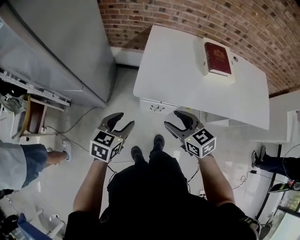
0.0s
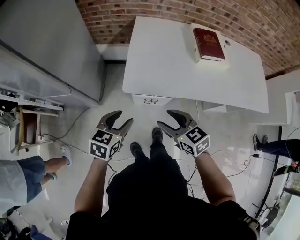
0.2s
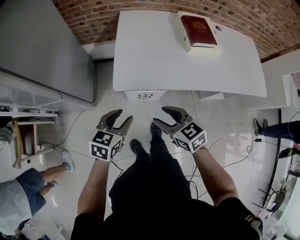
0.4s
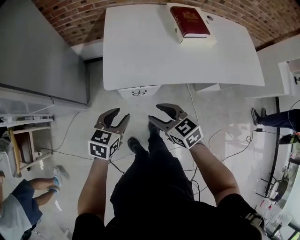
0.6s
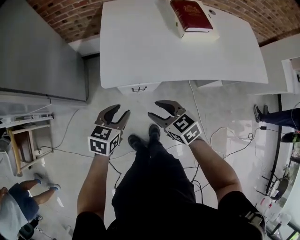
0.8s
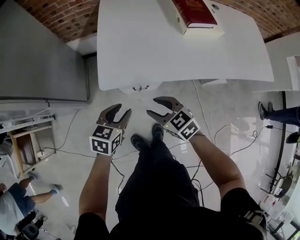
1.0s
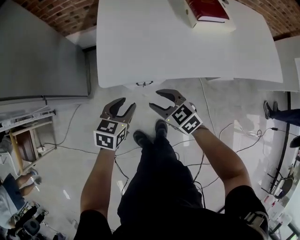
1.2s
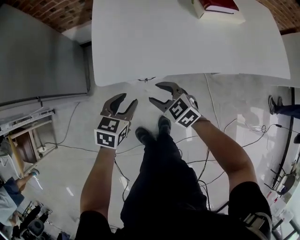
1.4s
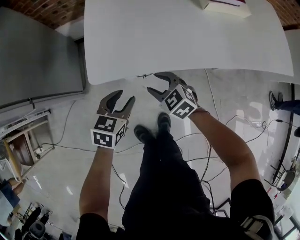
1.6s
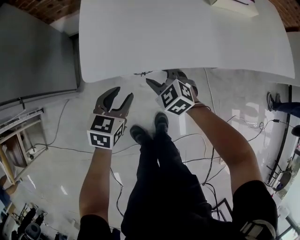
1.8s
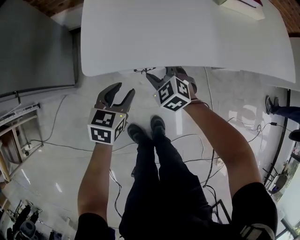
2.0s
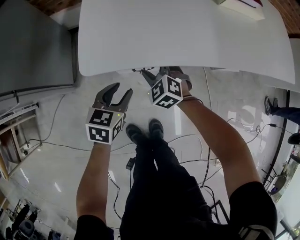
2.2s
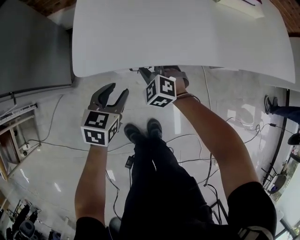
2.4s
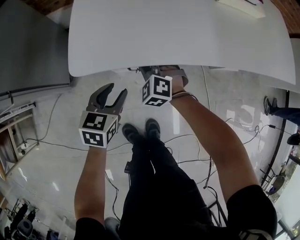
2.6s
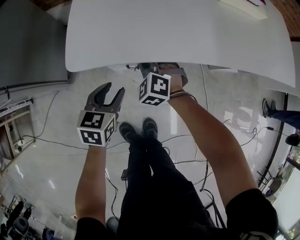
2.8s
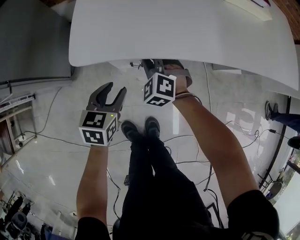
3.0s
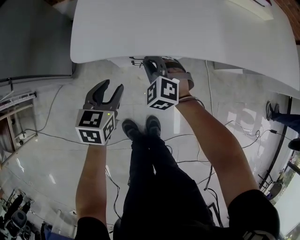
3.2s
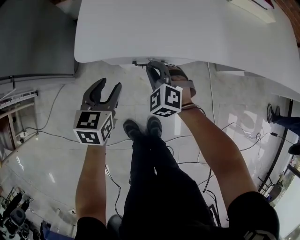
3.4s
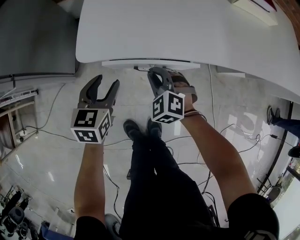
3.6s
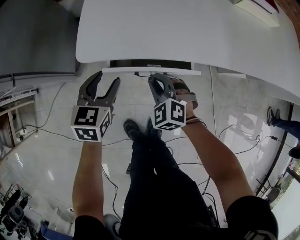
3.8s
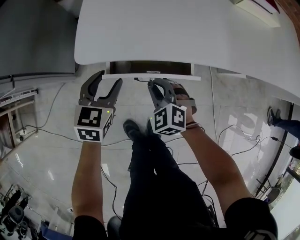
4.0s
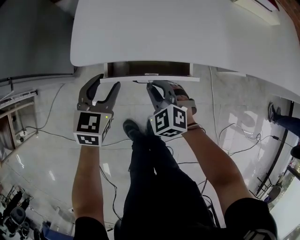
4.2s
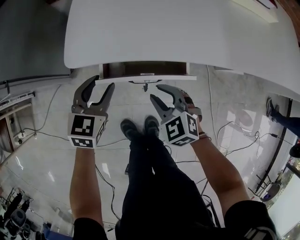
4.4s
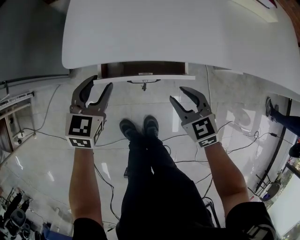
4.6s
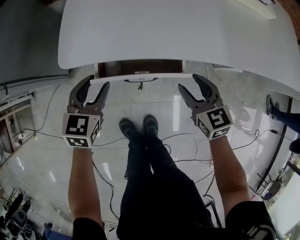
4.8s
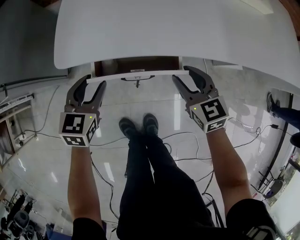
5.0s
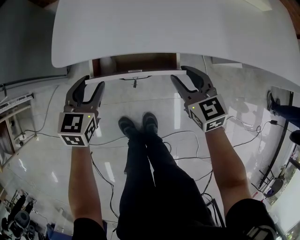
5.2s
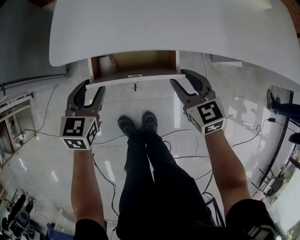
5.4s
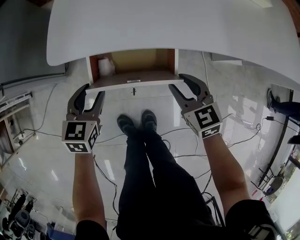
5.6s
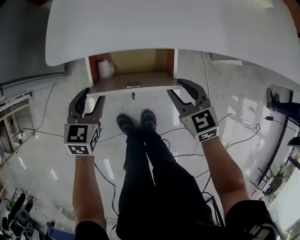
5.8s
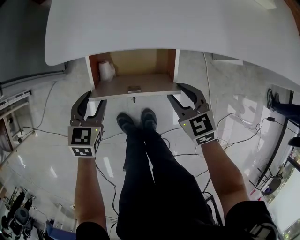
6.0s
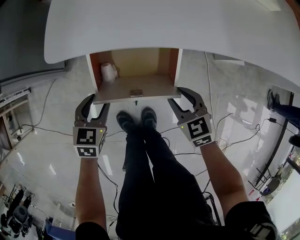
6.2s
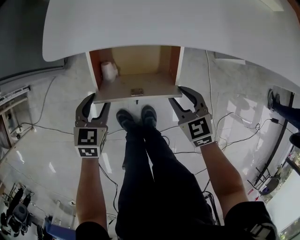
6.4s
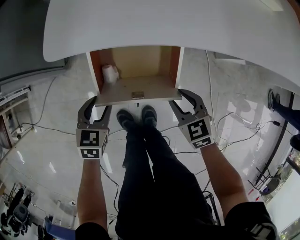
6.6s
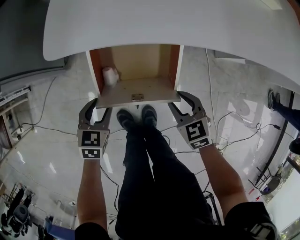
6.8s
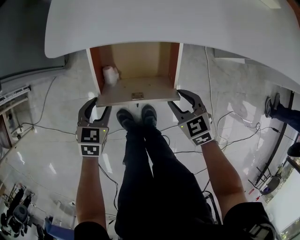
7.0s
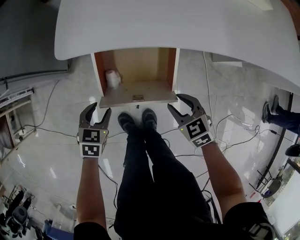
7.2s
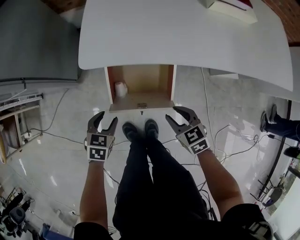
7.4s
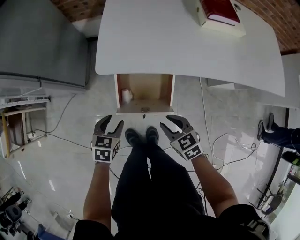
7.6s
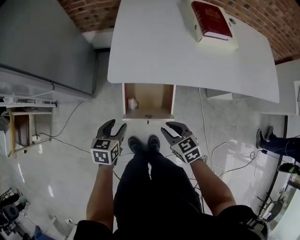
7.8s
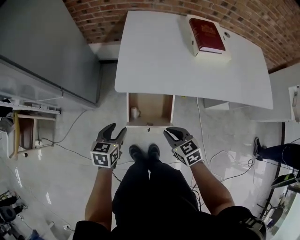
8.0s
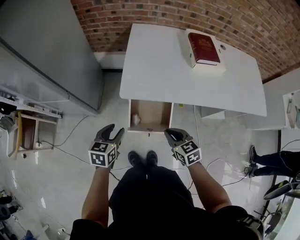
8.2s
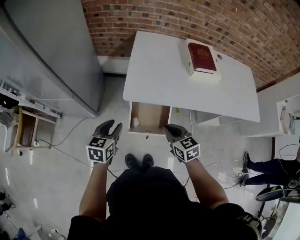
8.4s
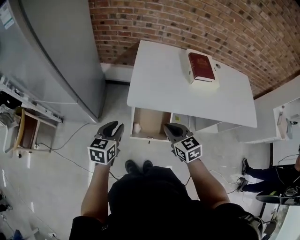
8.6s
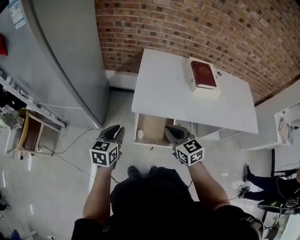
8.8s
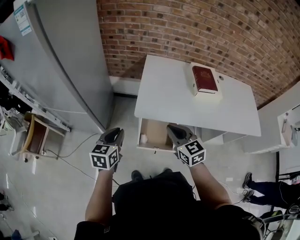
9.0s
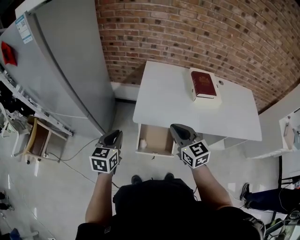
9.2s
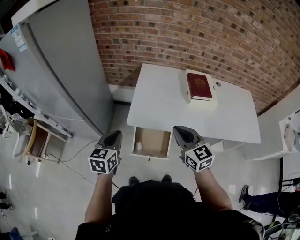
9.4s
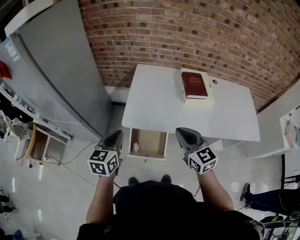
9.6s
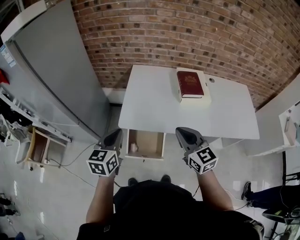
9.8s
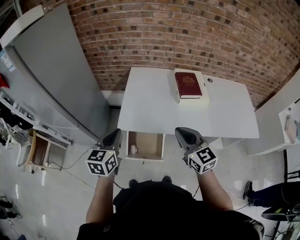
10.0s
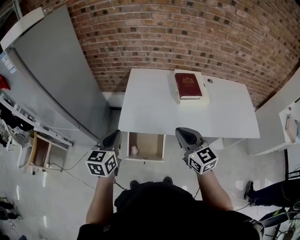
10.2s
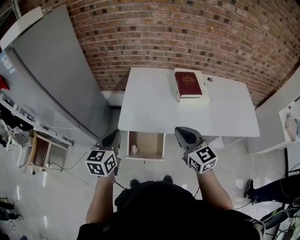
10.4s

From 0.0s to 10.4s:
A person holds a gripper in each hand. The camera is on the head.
From 0.0s to 1.4s: The left gripper shifts approximately 25 cm downward and to the right. Meanwhile the right gripper travels downward by roughly 25 cm.
From 1.4s to 3.0s: The right gripper shifts about 15 cm downward and forward, changes its angle by some 40 degrees, and closes up. Meanwhile the left gripper is displaced downward by some 10 cm.
From 3.0s to 4.4s: The right gripper heads backward, covering roughly 10 cm, and swivels roughly 20 degrees.
From 4.4s to 6.0s: The right gripper moves to the right, some 10 cm, and swivels roughly 20 degrees. Meanwhile the left gripper moves backward, some 10 cm.
From 6.0s to 7.4s: Both grippers travel together backward, some 5 cm.
From 7.4s to 9.0s: The two grippers go approximately 40 cm upward. The left gripper angles its fingers upward, by about 30 degrees, and closes up; the right gripper changes its angle by approximately 30 degrees, and closes.
From 9.0s to 10.4s: The two grippers go about 15 cm to the right and upward.

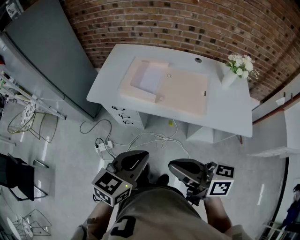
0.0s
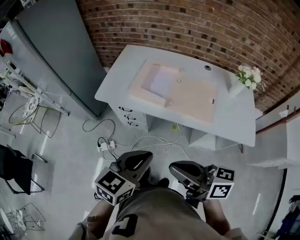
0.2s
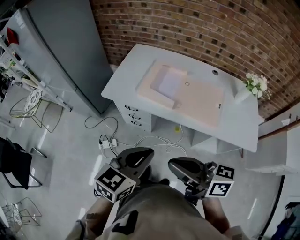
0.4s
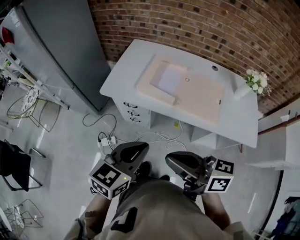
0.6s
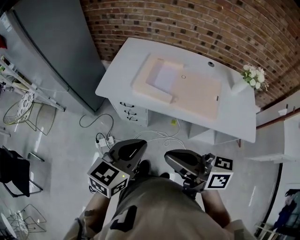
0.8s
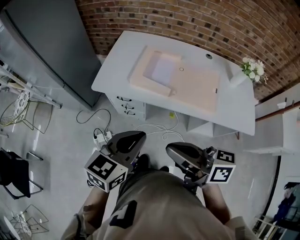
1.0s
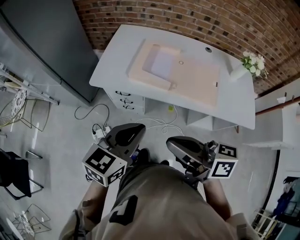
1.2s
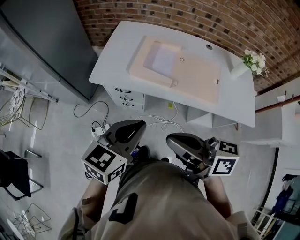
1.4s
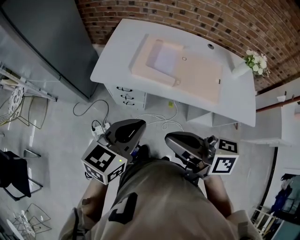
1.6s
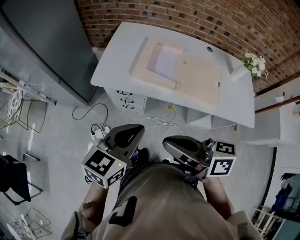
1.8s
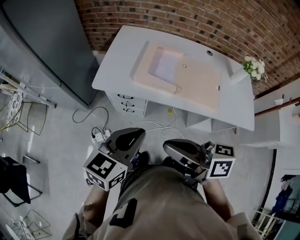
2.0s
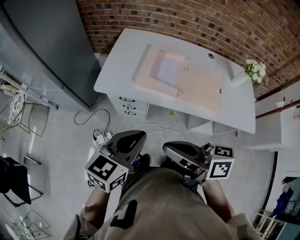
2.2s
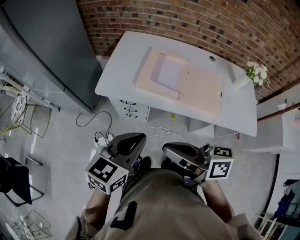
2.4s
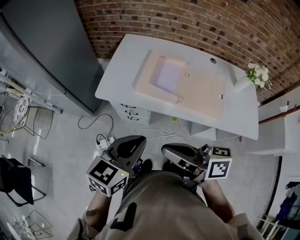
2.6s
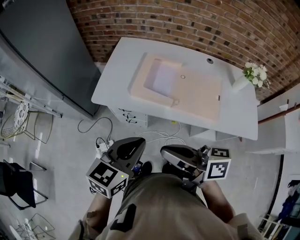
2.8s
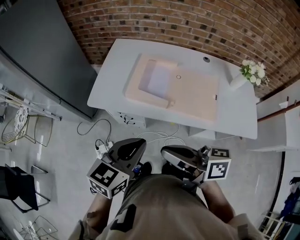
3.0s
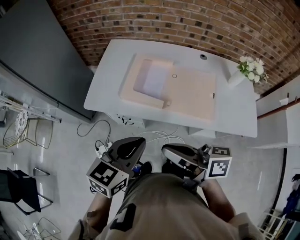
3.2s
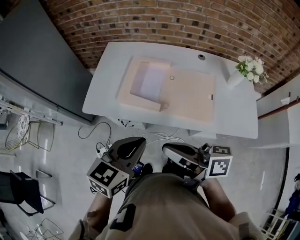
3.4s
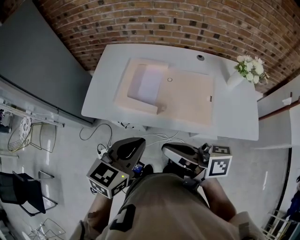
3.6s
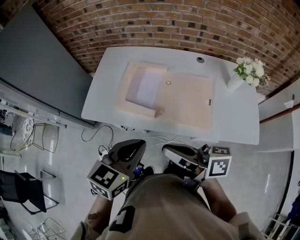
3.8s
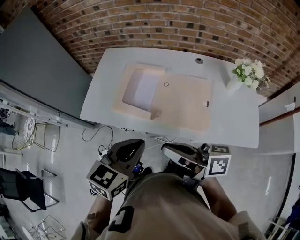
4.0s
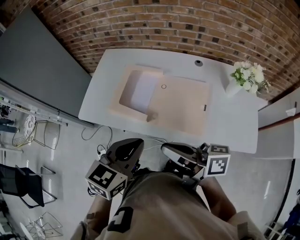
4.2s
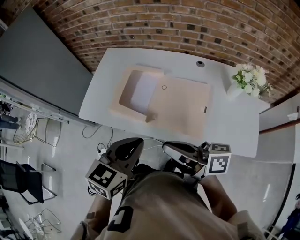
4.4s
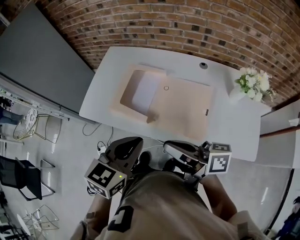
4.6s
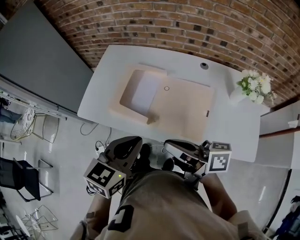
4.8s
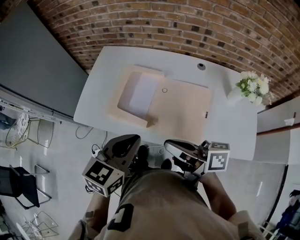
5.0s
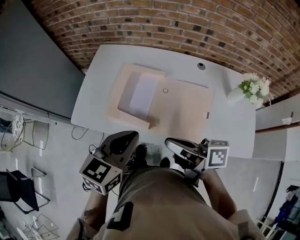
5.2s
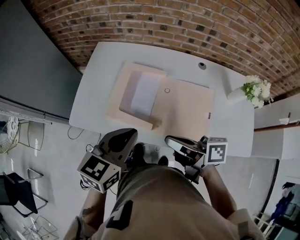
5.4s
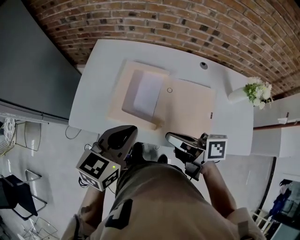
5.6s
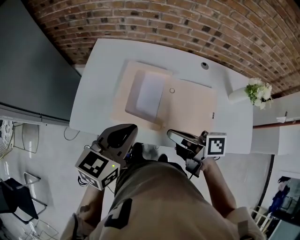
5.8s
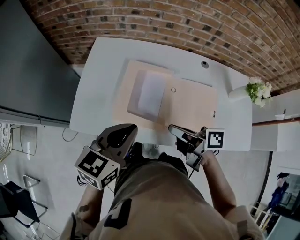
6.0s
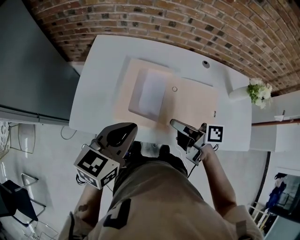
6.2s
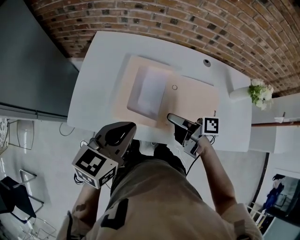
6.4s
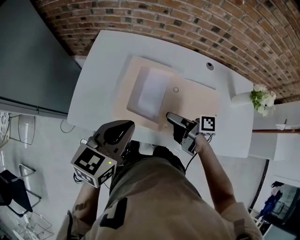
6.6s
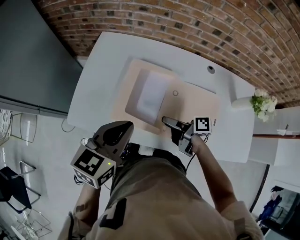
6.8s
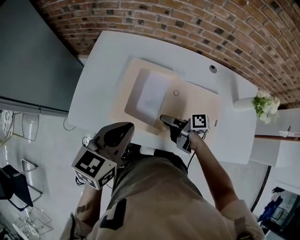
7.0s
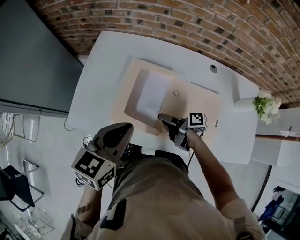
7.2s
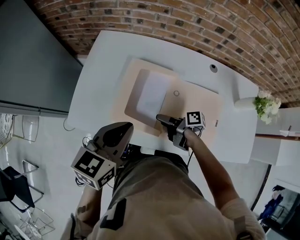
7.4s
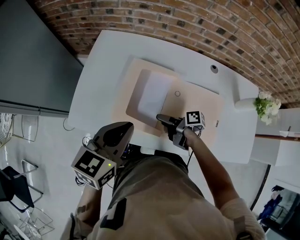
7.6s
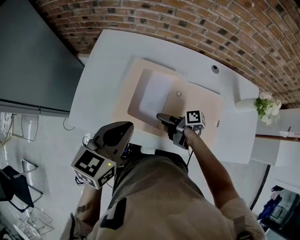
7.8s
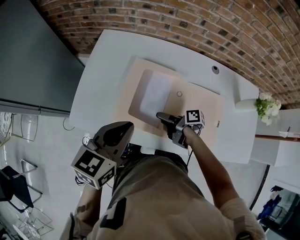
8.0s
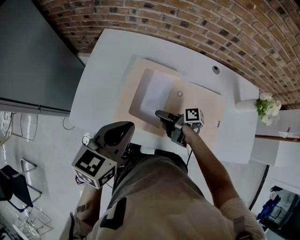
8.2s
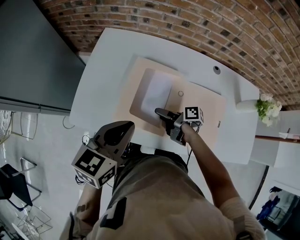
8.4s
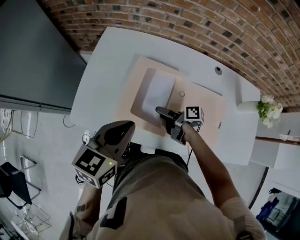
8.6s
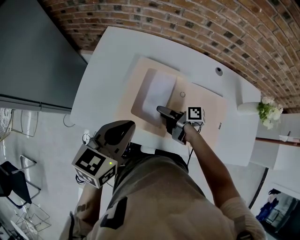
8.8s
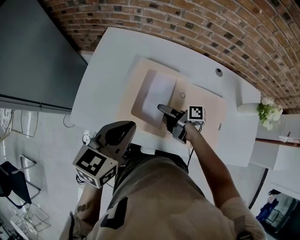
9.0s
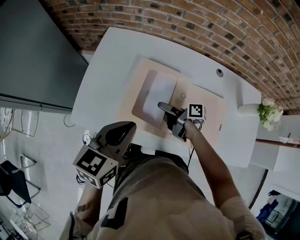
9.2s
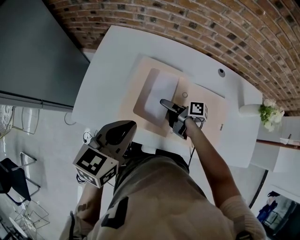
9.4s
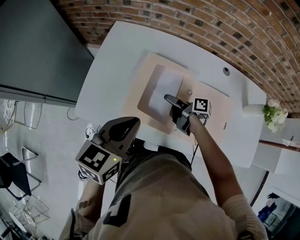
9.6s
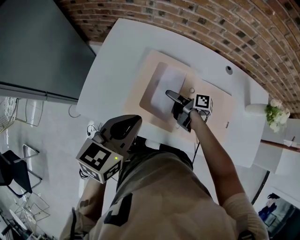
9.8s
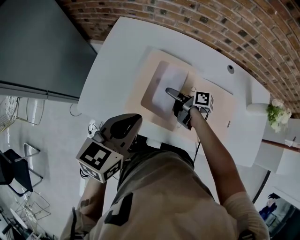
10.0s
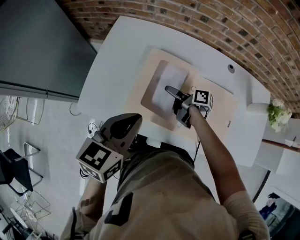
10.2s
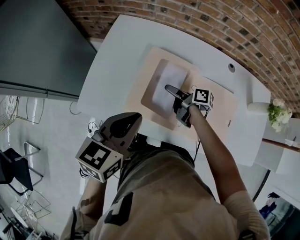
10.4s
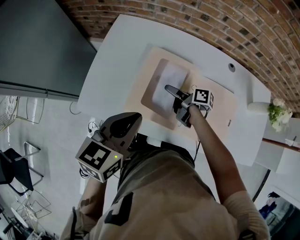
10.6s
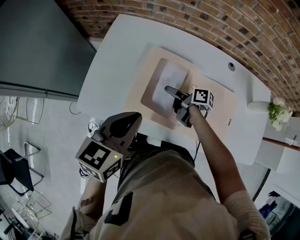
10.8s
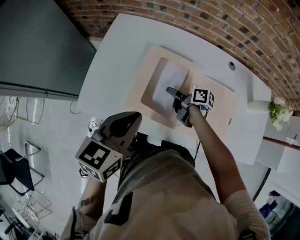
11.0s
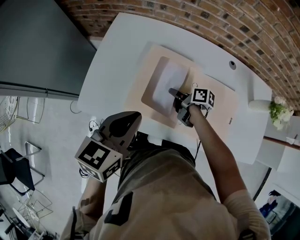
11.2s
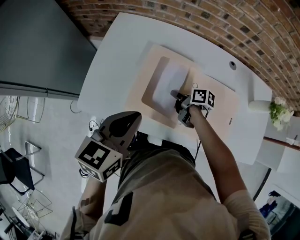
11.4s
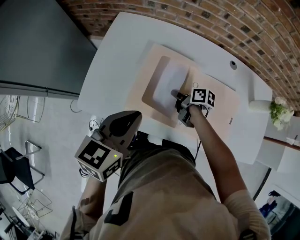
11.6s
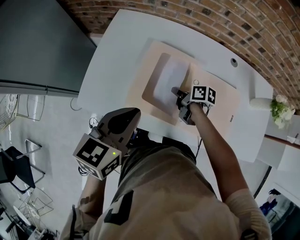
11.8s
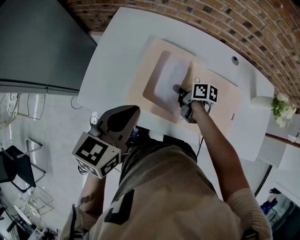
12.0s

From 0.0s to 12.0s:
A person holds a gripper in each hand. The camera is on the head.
From 0.0s to 1.6s: The grippers both shift to the left and forward by about 15 cm.
From 1.6s to 3.0s: The left gripper ends up some 5 cm from where it was. Meanwhile the right gripper shifts by about 5 cm.
From 3.0s to 4.4s: The left gripper goes approximately 15 cm to the right. The right gripper shifts roughly 20 cm to the right and forward.
From 4.4s to 6.0s: The left gripper goes approximately 20 cm forward and to the left. Meanwhile the right gripper heads forward, downward and to the left, covering some 20 cm, and swivels about 20 degrees.
From 6.0s to 7.6s: The right gripper moves downward, some 15 cm, turns by approximately 30 degrees, and opens.
From 7.6s to 9.0s: The right gripper is displaced forward by roughly 5 cm.
From 9.0s to 10.4s: The grippers make only small movements.
From 10.4s to 12.0s: The right gripper closes.

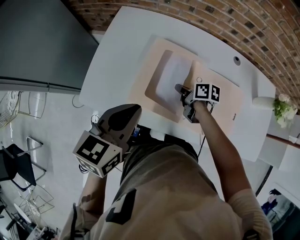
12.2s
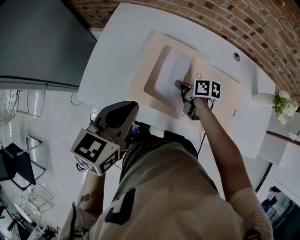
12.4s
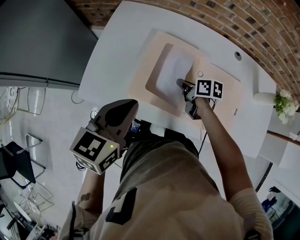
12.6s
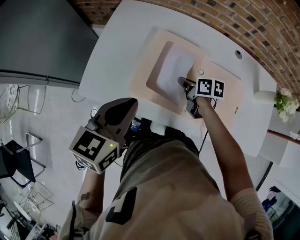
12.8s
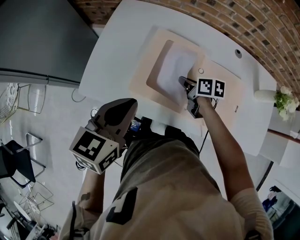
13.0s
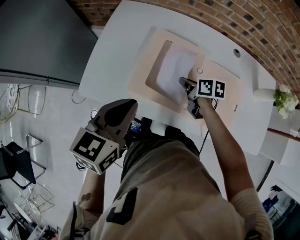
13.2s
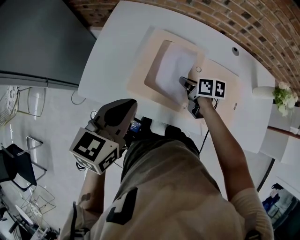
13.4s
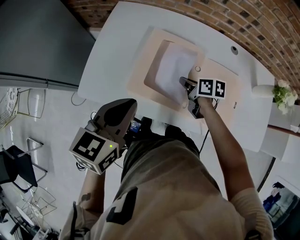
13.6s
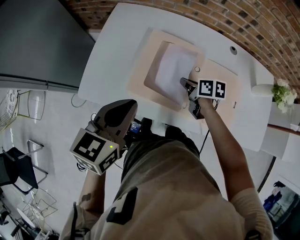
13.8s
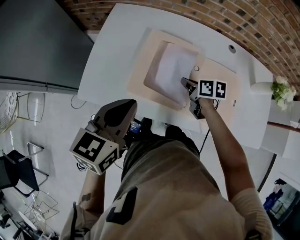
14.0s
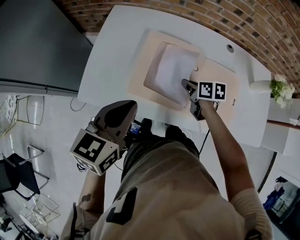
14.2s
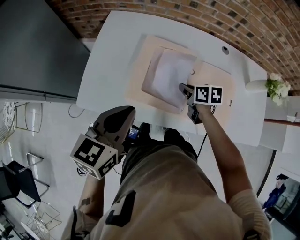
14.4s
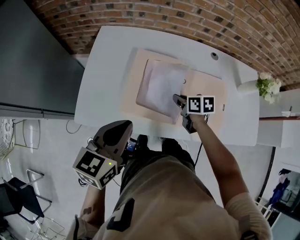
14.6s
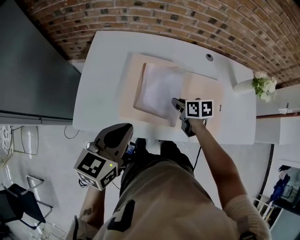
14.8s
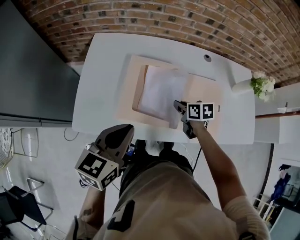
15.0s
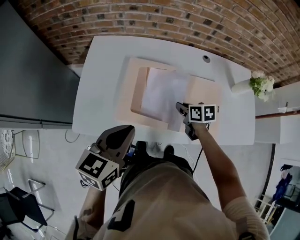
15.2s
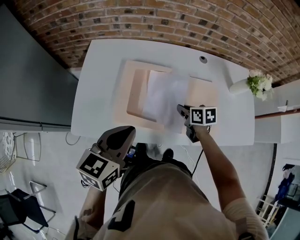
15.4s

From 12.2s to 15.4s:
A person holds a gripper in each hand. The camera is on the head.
From 12.2s to 13.8s: The grippers move only a little.
From 13.8s to 15.4s: The right gripper is displaced to the right by about 10 cm.
